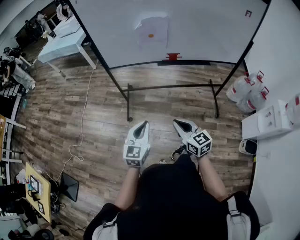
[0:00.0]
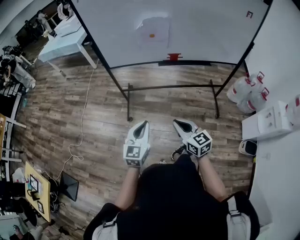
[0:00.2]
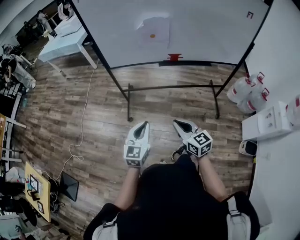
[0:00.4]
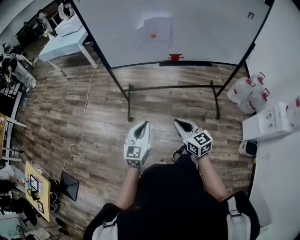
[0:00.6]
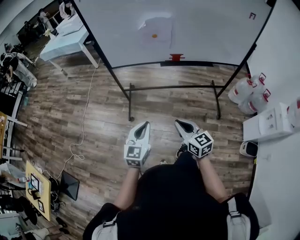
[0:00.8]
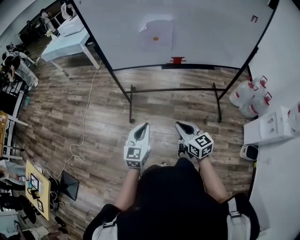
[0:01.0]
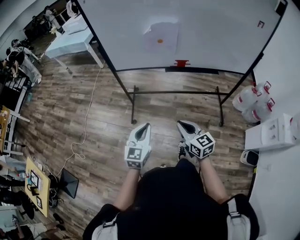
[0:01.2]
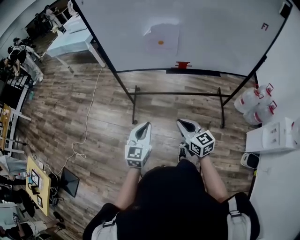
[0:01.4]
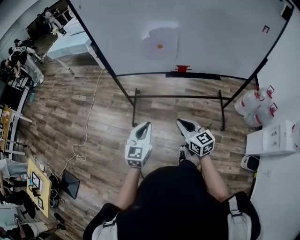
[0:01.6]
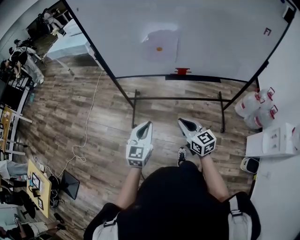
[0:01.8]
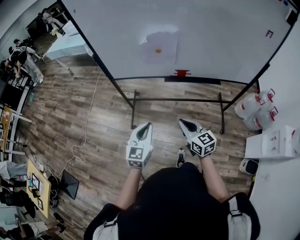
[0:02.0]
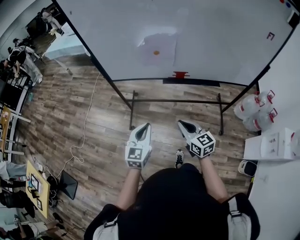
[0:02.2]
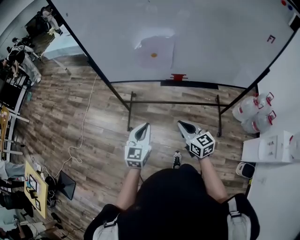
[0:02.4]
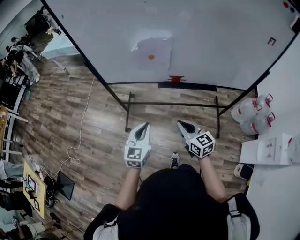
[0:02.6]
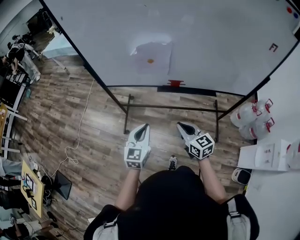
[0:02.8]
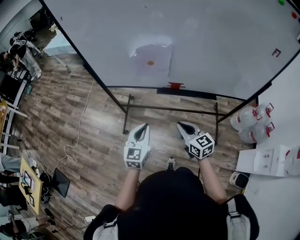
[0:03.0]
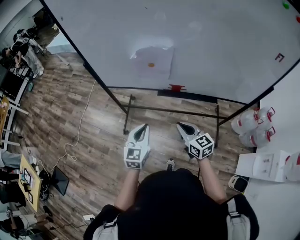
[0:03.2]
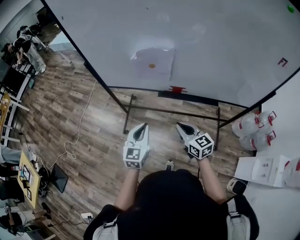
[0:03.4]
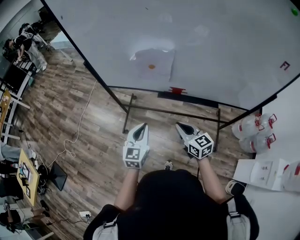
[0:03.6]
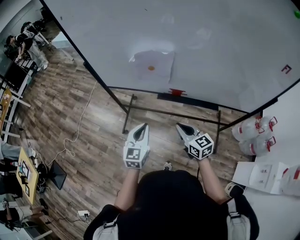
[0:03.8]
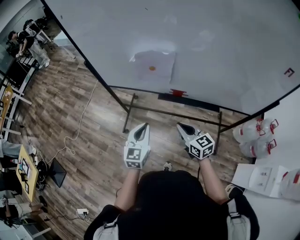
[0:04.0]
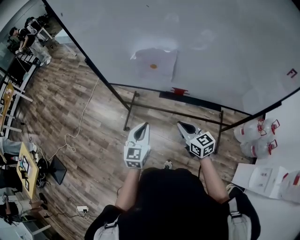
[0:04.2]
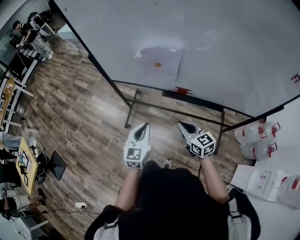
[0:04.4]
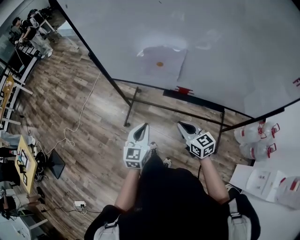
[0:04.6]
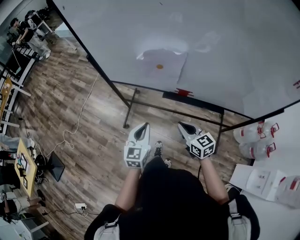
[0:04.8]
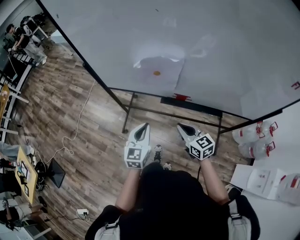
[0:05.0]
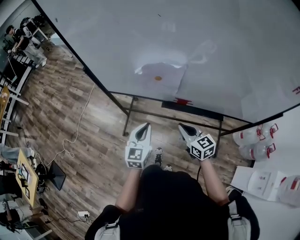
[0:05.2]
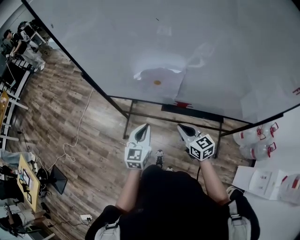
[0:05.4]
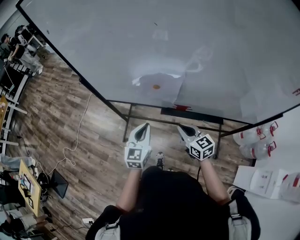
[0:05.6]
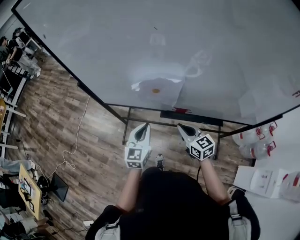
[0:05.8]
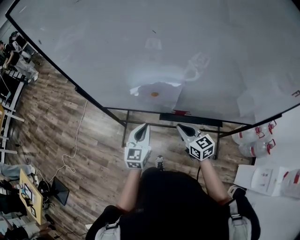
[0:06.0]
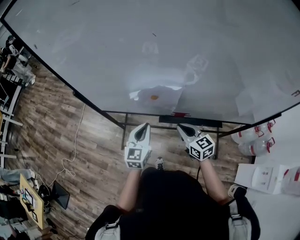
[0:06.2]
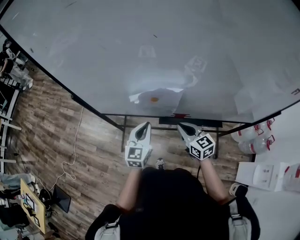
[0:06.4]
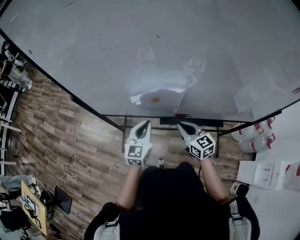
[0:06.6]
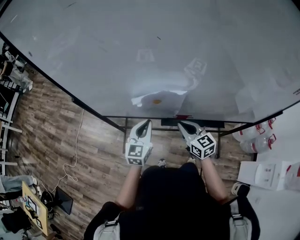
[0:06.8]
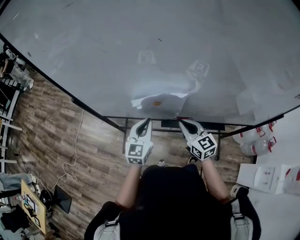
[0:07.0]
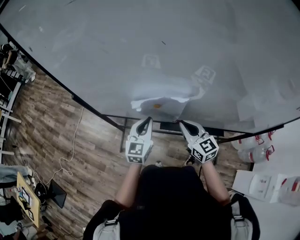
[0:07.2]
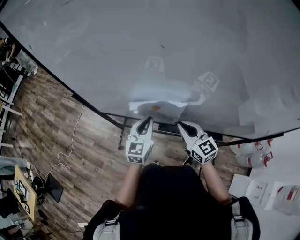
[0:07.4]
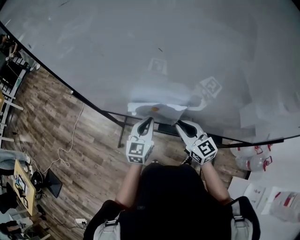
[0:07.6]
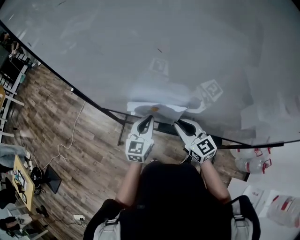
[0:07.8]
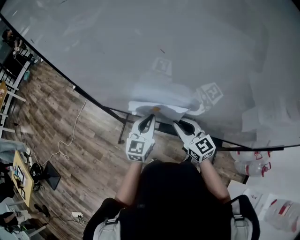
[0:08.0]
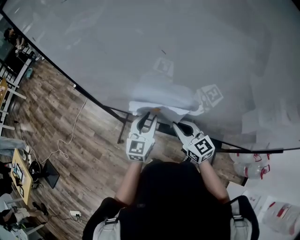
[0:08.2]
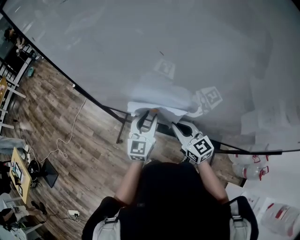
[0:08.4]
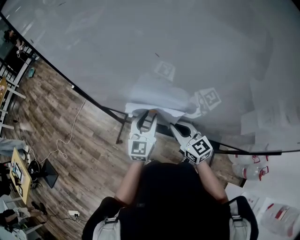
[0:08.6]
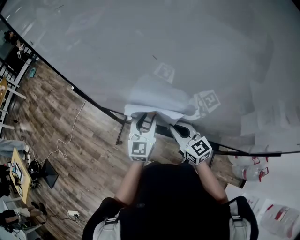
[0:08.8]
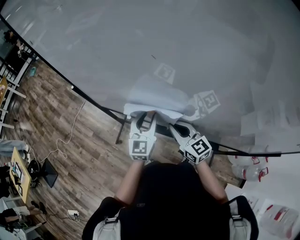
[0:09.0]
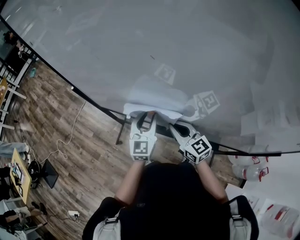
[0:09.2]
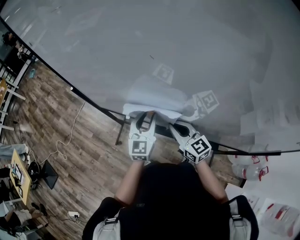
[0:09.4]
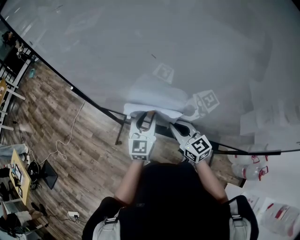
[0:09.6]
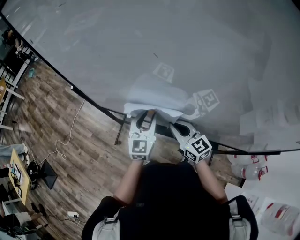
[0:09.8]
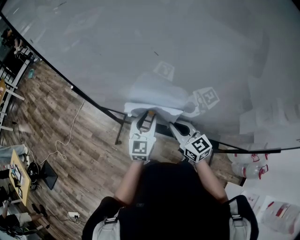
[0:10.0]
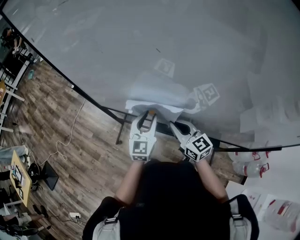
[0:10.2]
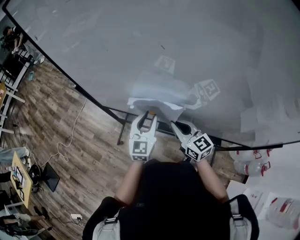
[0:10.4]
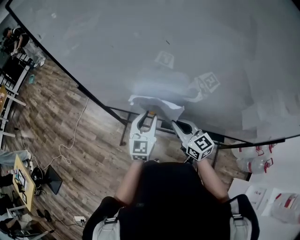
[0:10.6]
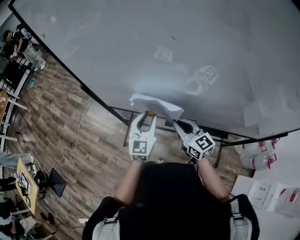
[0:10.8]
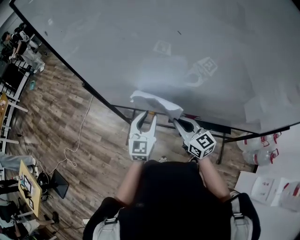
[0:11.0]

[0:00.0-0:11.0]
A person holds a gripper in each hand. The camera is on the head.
0:00.0 to 0:01.6: The grippers both shift forward by some 10 cm.
0:01.6 to 0:03.2: The grippers both shift forward and to the right by roughly 20 cm.
0:03.2 to 0:04.8: The grippers both shift forward by approximately 5 cm.
0:04.8 to 0:06.2: Both grippers travel together forward, some 15 cm.
0:06.2 to 0:07.8: Both grippers move forward, some 10 cm.
0:07.8 to 0:09.4: The left gripper opens its fingers.
0:09.4 to 0:11.0: The left gripper moves to the left and backward, roughly 10 cm. Meanwhile the right gripper shifts approximately 5 cm to the left.

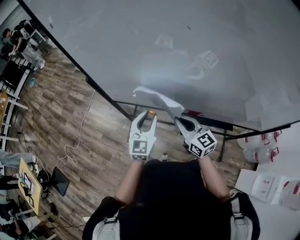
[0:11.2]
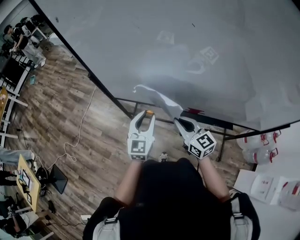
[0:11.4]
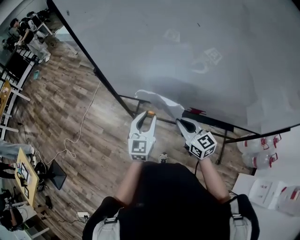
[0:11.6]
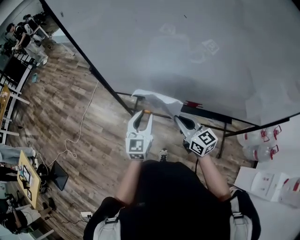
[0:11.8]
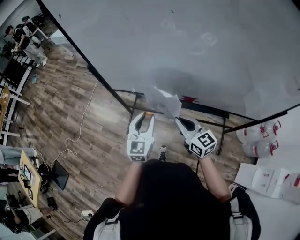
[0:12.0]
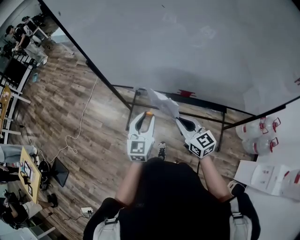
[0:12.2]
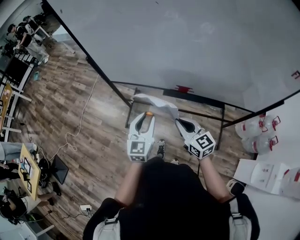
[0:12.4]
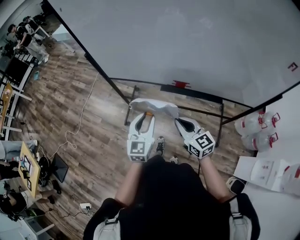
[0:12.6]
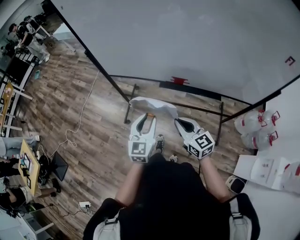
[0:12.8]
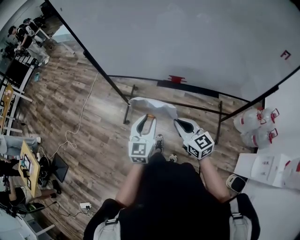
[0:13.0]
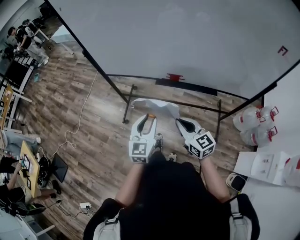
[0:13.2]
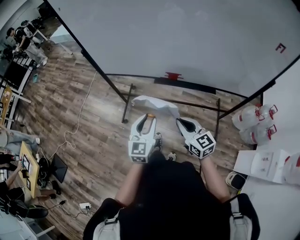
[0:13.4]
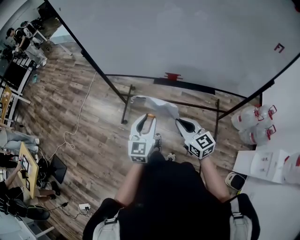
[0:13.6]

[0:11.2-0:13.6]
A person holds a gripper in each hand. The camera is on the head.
0:11.2 to 0:12.4: The two grippers go some 20 cm backward.
0:12.4 to 0:13.6: Both grippers travel together backward, some 10 cm.

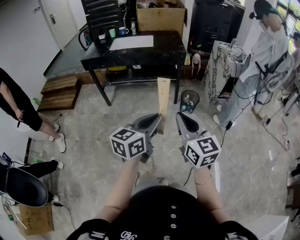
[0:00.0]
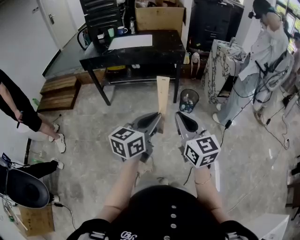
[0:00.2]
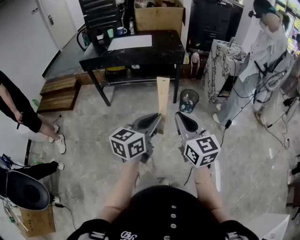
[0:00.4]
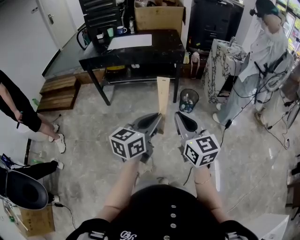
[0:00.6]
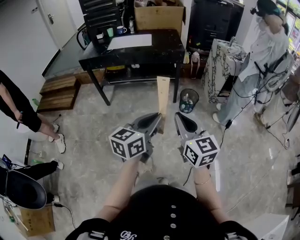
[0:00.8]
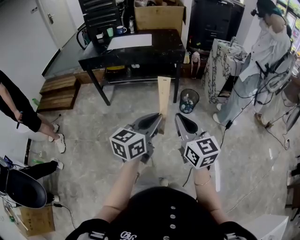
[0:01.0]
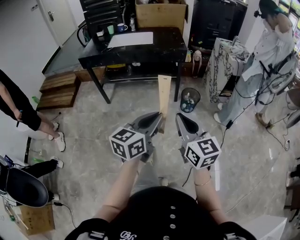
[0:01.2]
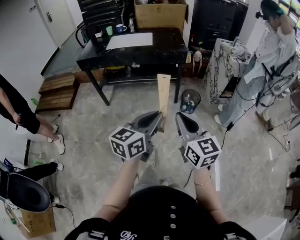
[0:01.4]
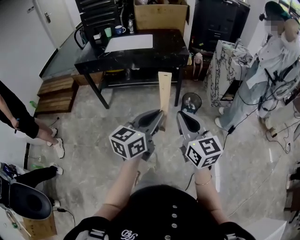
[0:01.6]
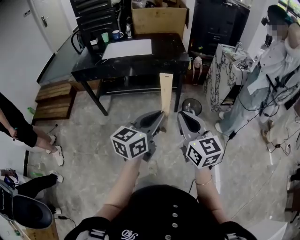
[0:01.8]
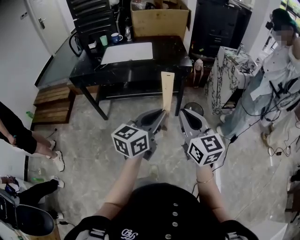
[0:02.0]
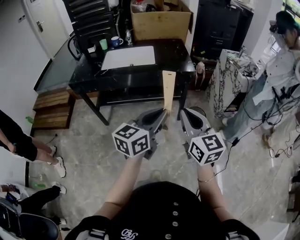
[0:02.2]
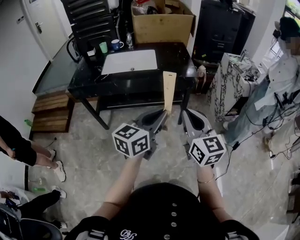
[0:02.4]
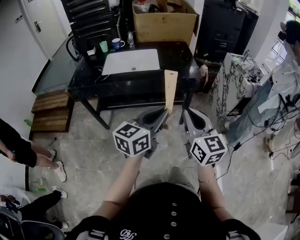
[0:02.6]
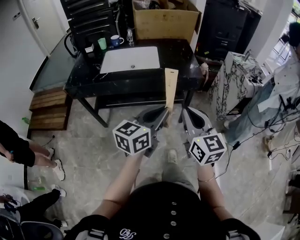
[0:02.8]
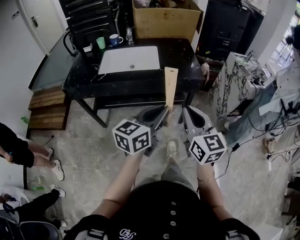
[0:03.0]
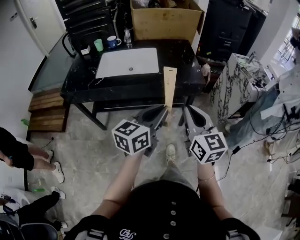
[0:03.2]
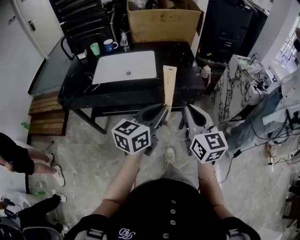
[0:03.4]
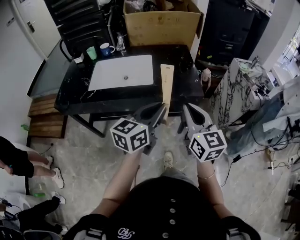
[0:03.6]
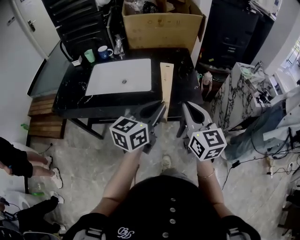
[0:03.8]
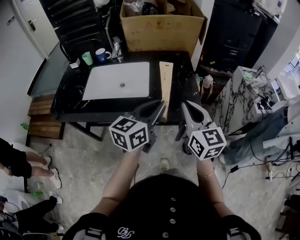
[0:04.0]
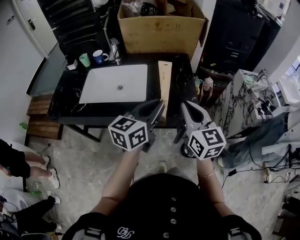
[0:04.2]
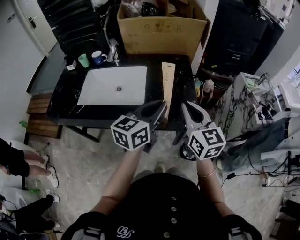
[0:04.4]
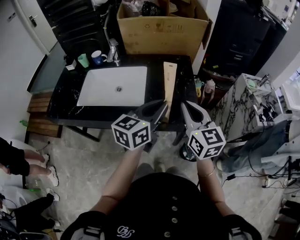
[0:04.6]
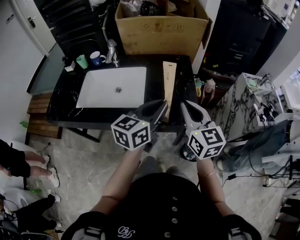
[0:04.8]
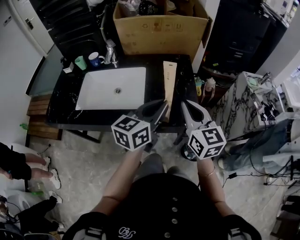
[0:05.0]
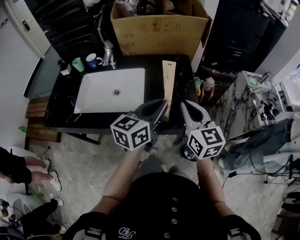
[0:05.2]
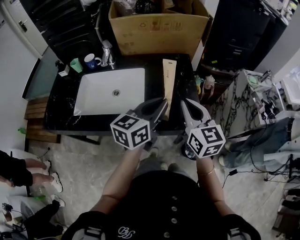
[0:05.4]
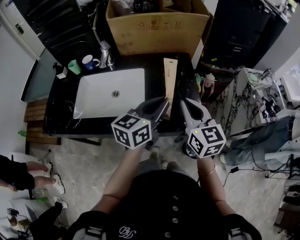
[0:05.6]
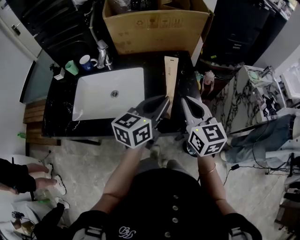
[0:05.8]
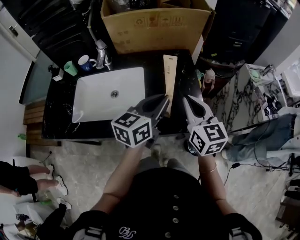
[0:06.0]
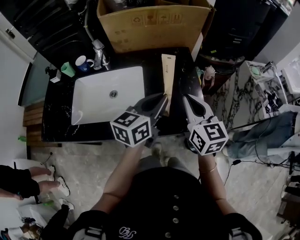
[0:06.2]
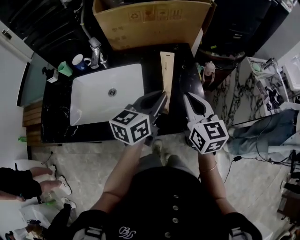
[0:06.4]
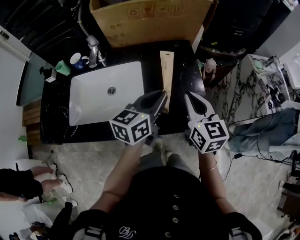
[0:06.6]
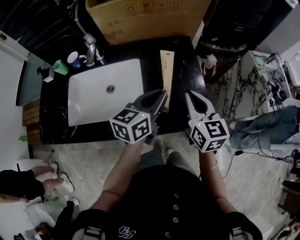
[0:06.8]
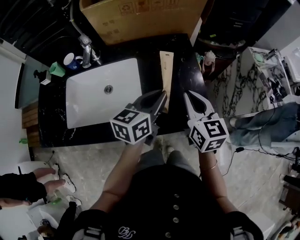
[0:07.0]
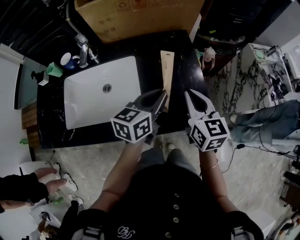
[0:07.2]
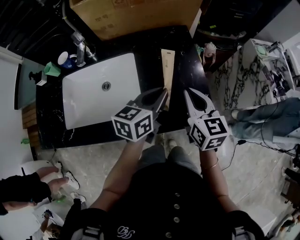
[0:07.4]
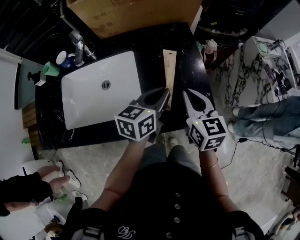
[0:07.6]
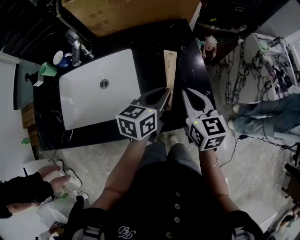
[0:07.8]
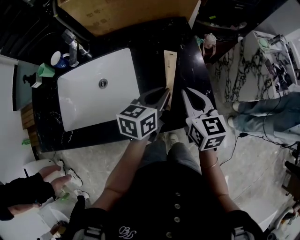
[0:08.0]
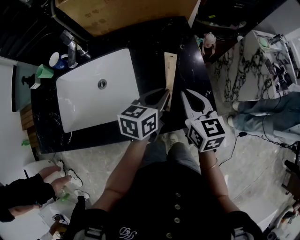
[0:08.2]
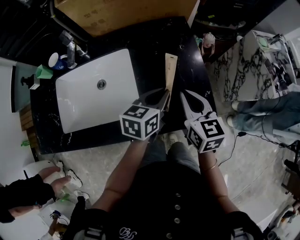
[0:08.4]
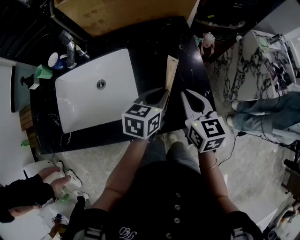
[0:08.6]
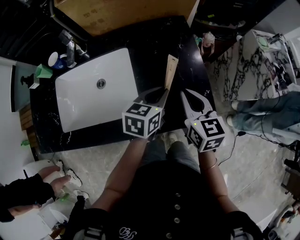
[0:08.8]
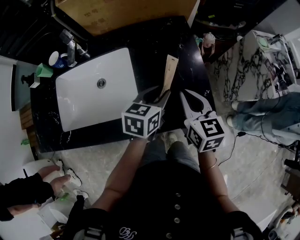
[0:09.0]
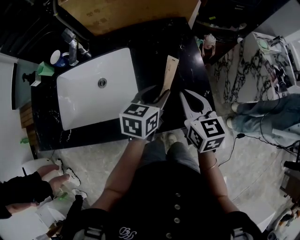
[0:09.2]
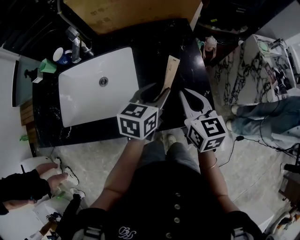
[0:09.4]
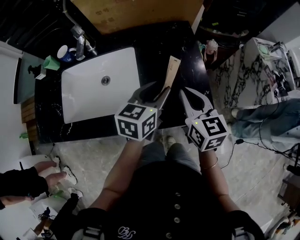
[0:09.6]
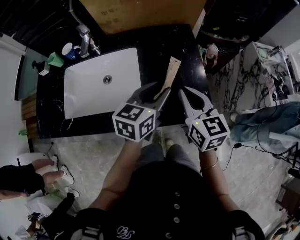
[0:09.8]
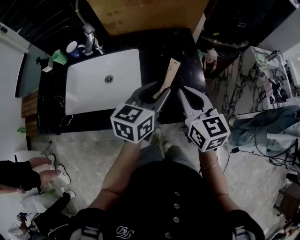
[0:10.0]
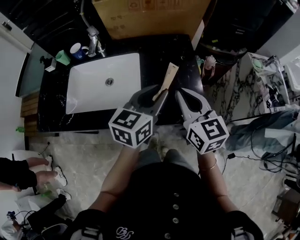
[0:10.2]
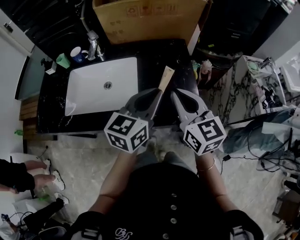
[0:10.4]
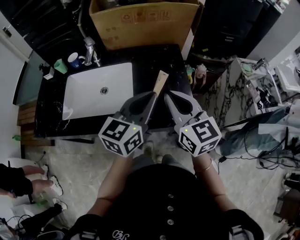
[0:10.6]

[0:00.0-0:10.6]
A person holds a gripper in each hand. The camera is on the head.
0:00.0 to 0:01.6: The two grippers go roughly 10 cm forward.
0:01.6 to 0:03.0: The grippers both shift forward by about 30 cm.
0:03.0 to 0:04.6: Both grippers travel together forward, some 30 cm.
0:04.6 to 0:06.0: Both grippers move forward, approximately 10 cm.
0:06.0 to 0:07.6: Both grippers move downward, roughly 10 cm.
0:07.6 to 0:09.0: The left gripper opens up.
0:09.0 to 0:10.6: The grippers both shift upward and backward by some 15 cm. The left gripper rotates approximately 30 degrees, and closes. The right gripper rotates approximately 30 degrees.
